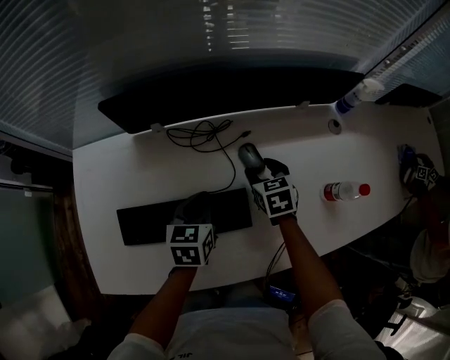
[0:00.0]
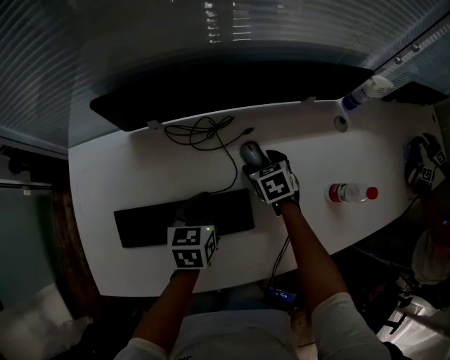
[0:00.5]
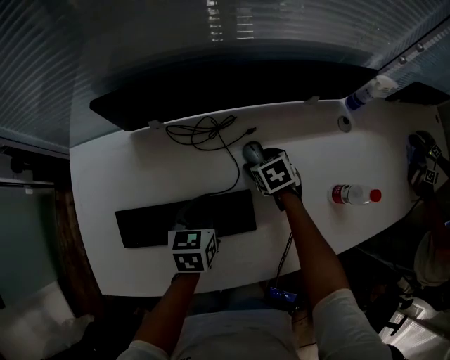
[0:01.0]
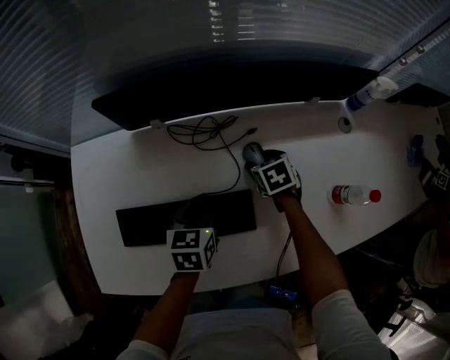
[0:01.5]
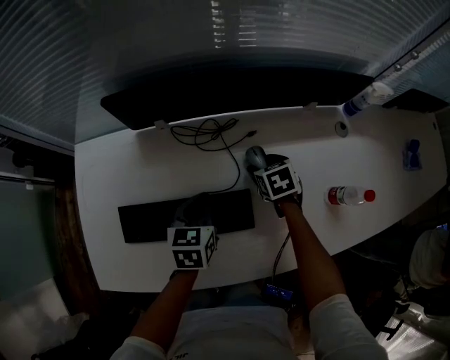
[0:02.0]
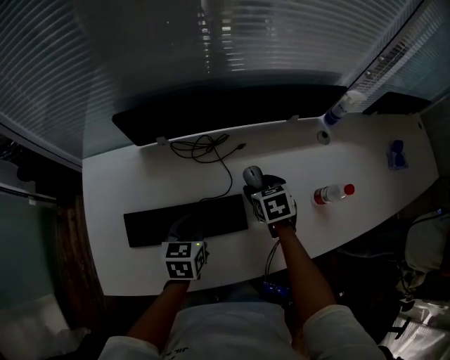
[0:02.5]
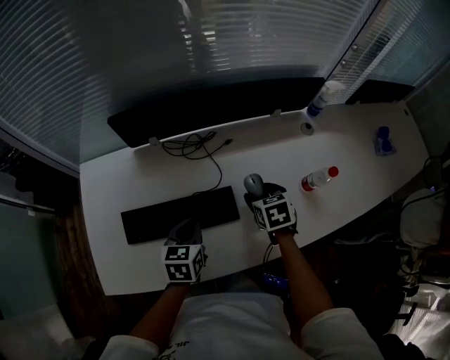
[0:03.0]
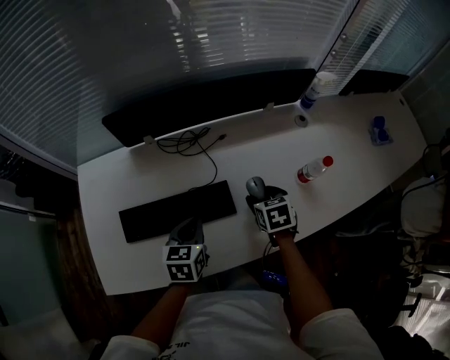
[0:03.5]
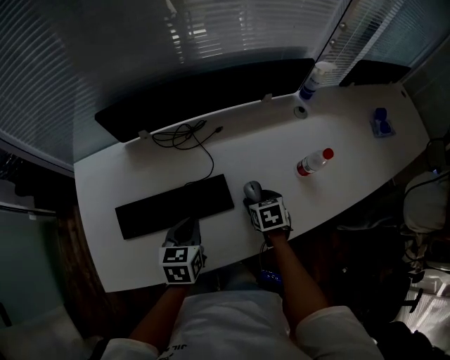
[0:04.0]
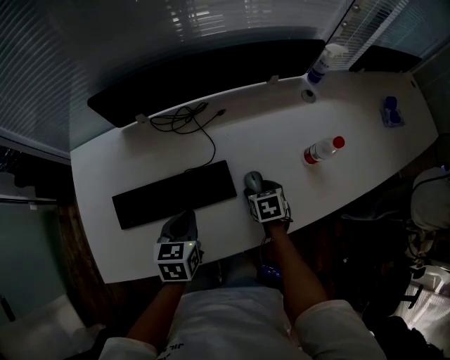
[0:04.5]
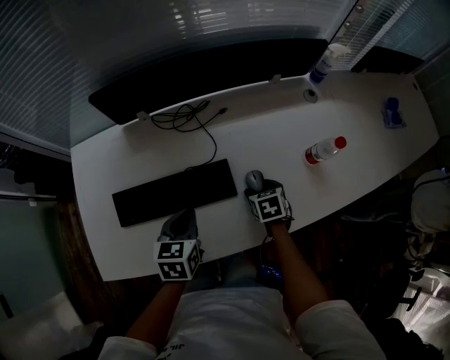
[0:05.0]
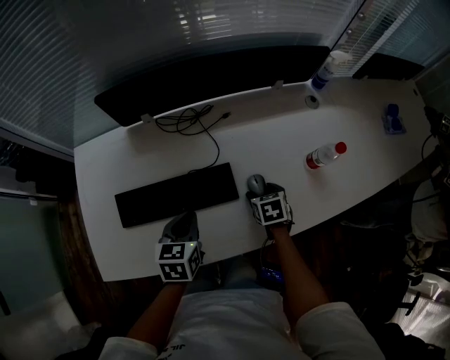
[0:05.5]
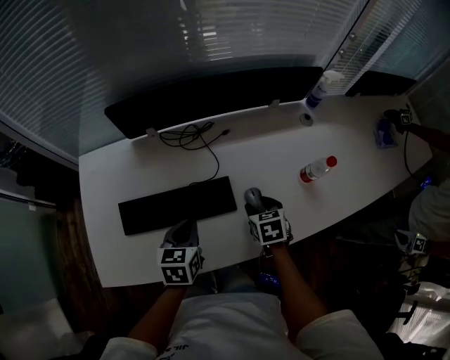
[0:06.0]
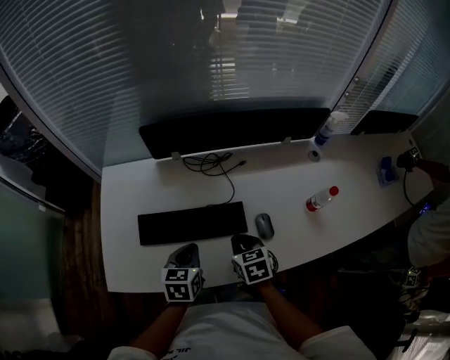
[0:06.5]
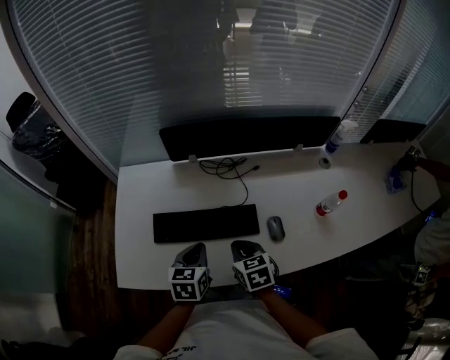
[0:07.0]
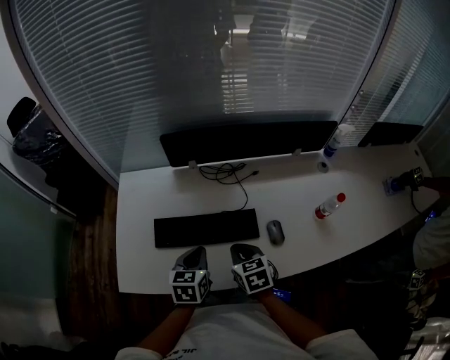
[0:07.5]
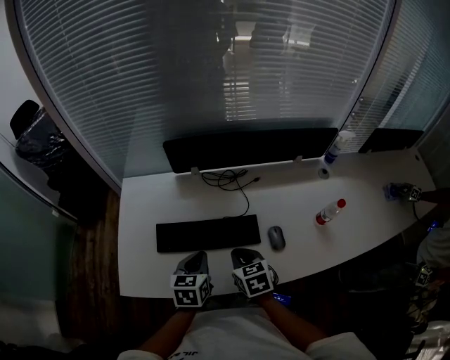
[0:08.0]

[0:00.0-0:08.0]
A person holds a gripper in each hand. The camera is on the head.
0:02.0 to 0:04.0: The two grippers go some 15 cm backward.
0:04.0 to 0:06.0: There are only small adjustments of the grippers.
0:06.0 to 0:08.0: The right gripper shifts roughly 20 cm to the left and upward, and closes up, while the left gripper travels to the left and upward by approximately 10 cm.

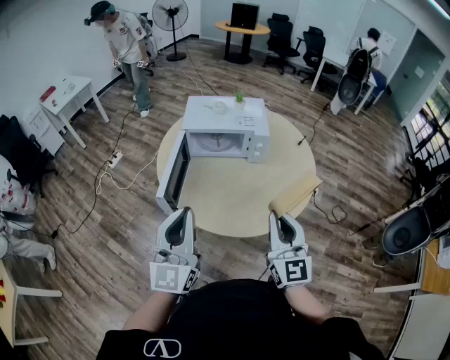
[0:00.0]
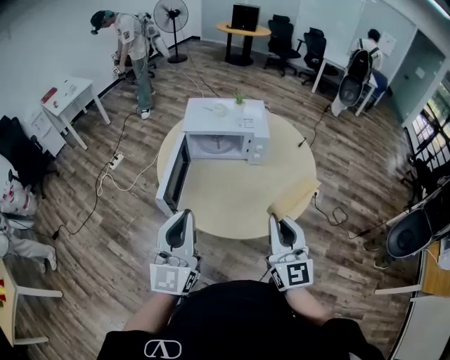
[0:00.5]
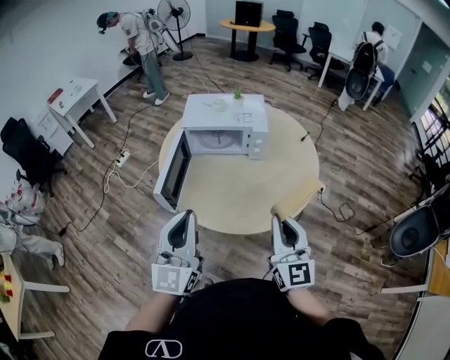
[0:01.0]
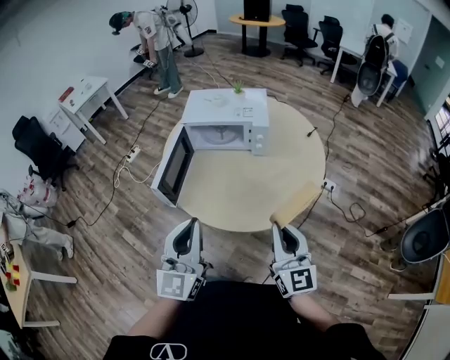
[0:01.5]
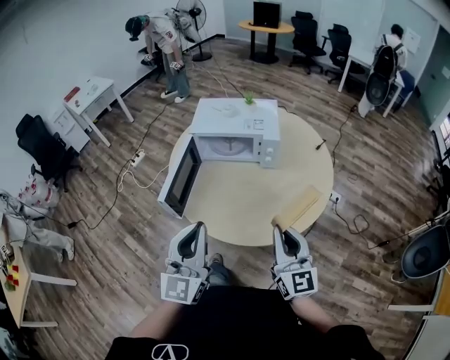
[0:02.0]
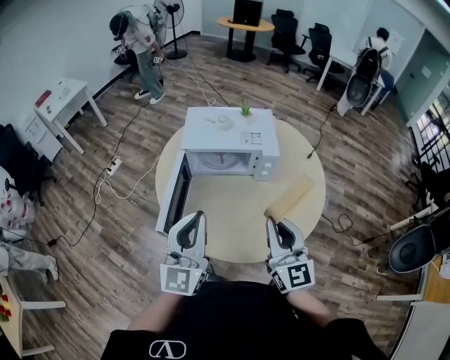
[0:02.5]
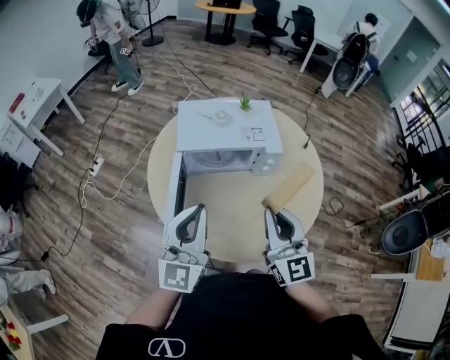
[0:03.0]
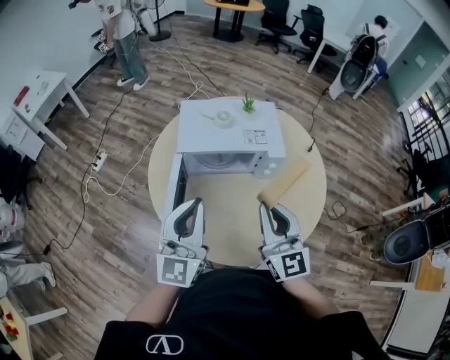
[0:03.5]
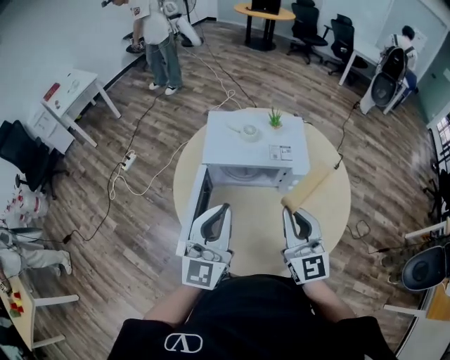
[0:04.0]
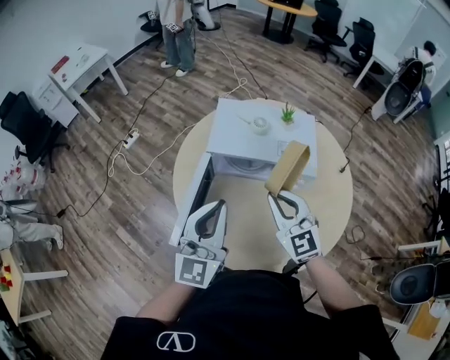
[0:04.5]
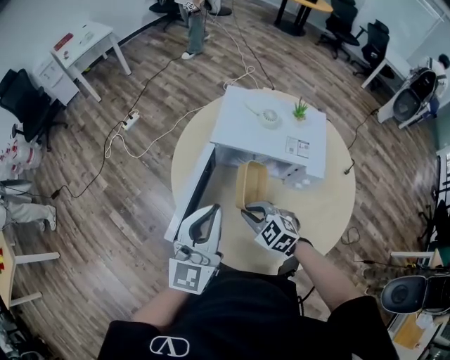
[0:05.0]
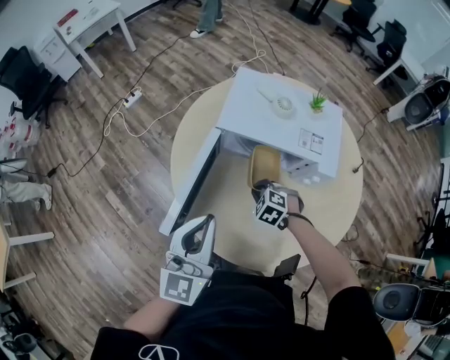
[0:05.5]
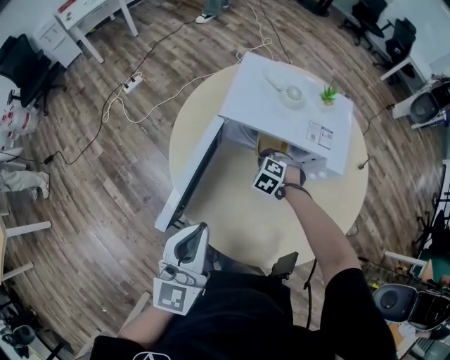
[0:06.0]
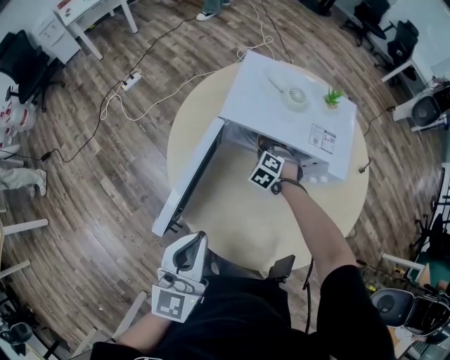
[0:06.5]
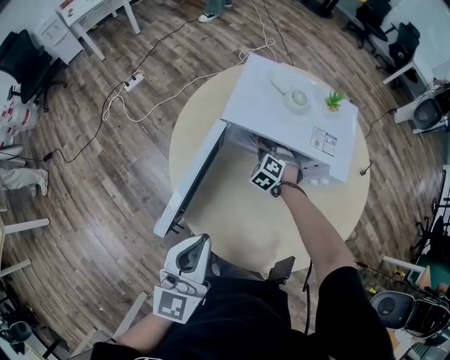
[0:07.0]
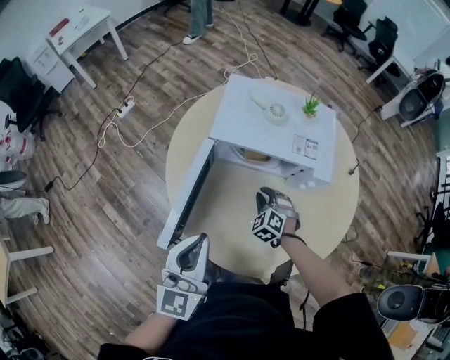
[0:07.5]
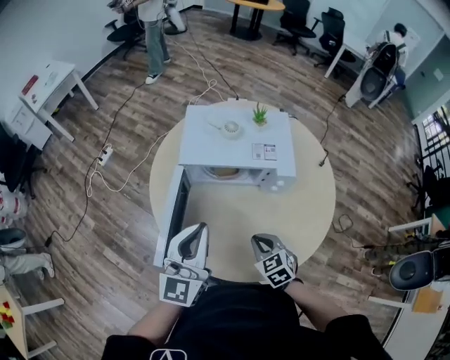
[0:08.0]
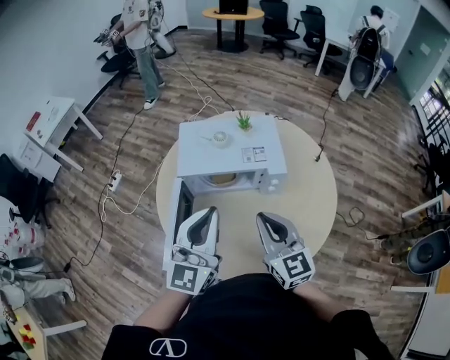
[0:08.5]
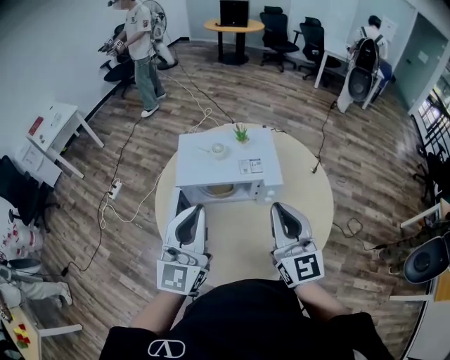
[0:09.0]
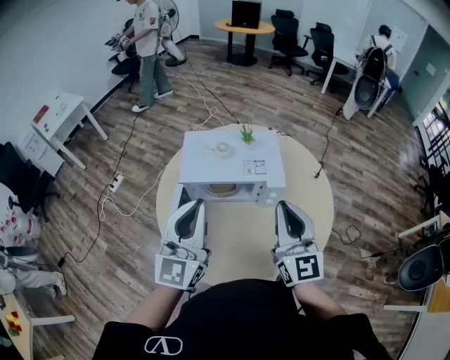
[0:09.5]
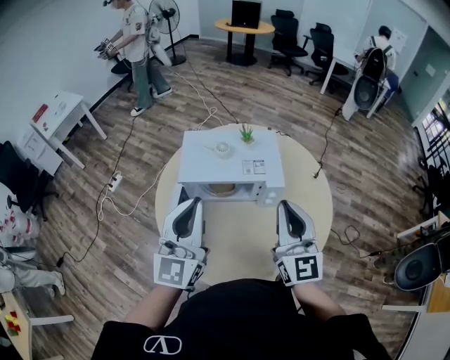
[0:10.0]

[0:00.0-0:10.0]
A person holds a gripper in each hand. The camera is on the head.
0:00.0 to 0:02.0: The two grippers go some 5 cm to the right.
0:02.0 to 0:04.0: The left gripper heads forward, covering approximately 25 cm, while the right gripper travels forward and to the left by some 30 cm.
0:04.0 to 0:06.0: The left gripper goes some 15 cm downward, and rotates about 20 degrees, while the right gripper moves downward, some 40 cm, and tilts its fingers roughly 70 degrees downward.
0:06.0 to 0:08.0: The right gripper travels backward and upward by about 25 cm, and twists about 40 degrees clockwise, seen from behind. Meanwhile the left gripper goes roughly 10 cm upward, forward and to the right.
0:08.0 to 0:10.0: The right gripper is displaced upward by about 30 cm, and points its fingers some 60 degrees further upward; the left gripper travels upward by approximately 10 cm.

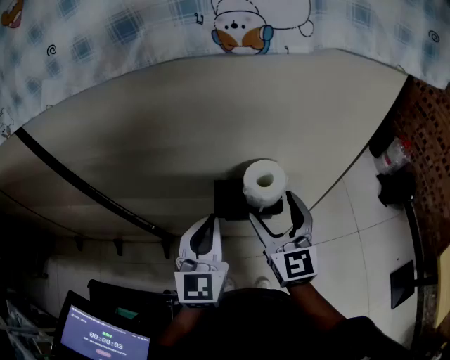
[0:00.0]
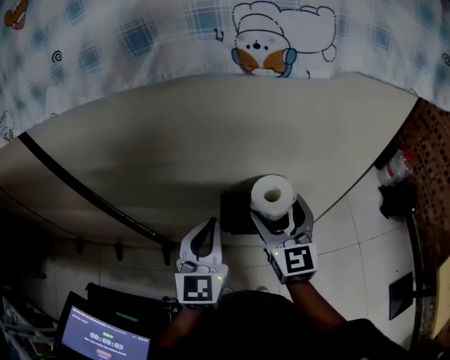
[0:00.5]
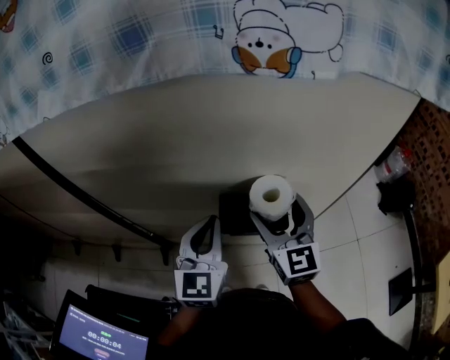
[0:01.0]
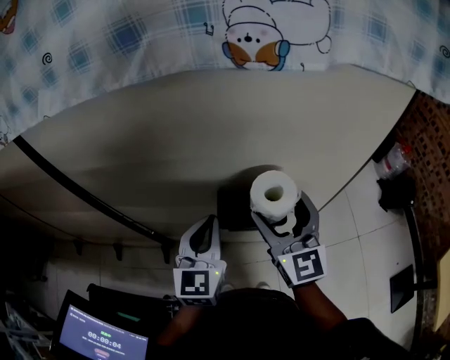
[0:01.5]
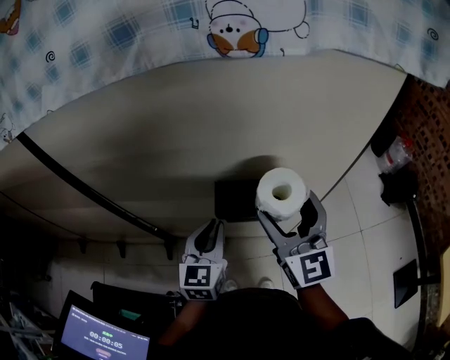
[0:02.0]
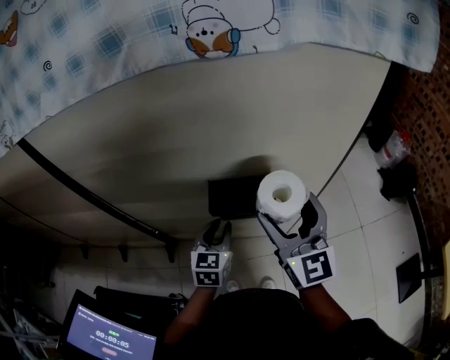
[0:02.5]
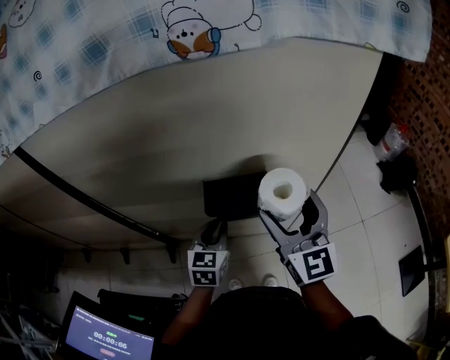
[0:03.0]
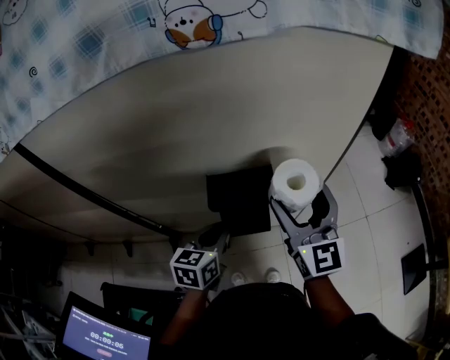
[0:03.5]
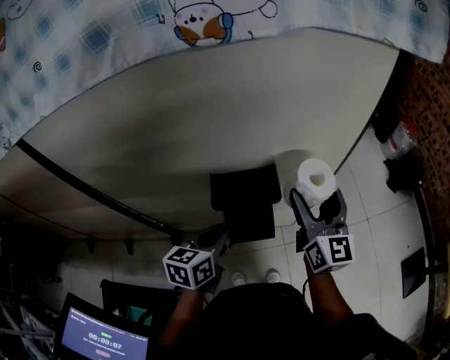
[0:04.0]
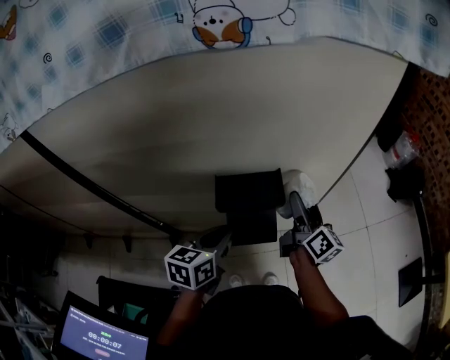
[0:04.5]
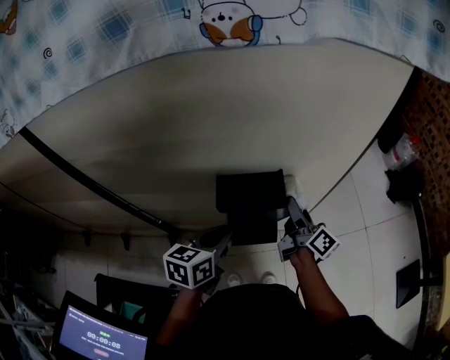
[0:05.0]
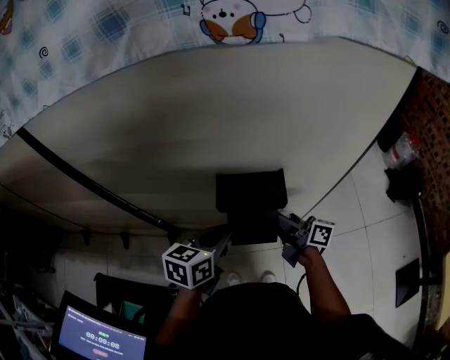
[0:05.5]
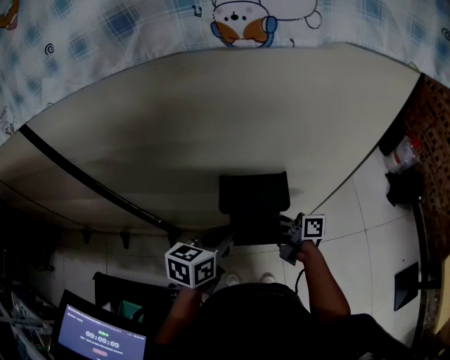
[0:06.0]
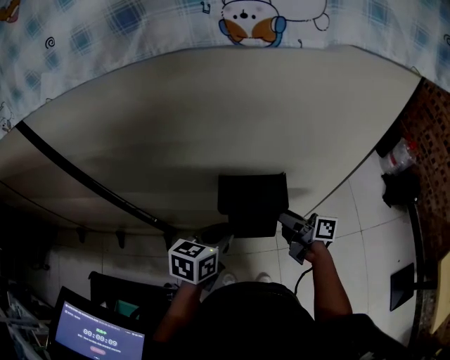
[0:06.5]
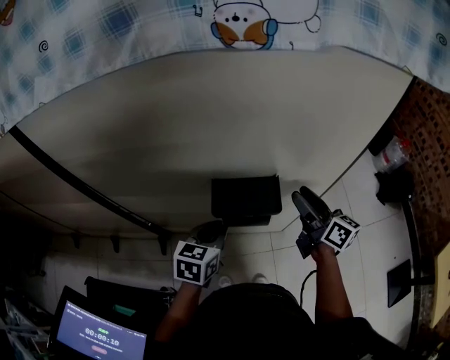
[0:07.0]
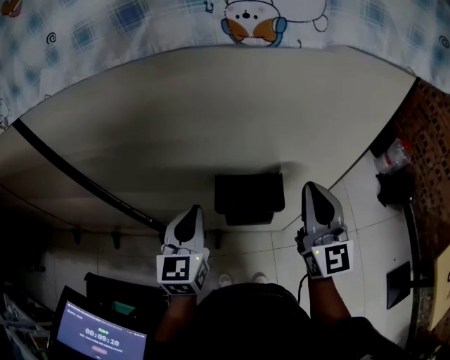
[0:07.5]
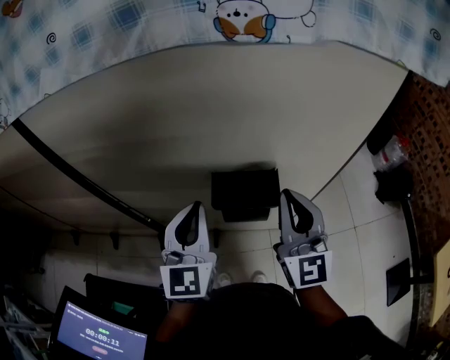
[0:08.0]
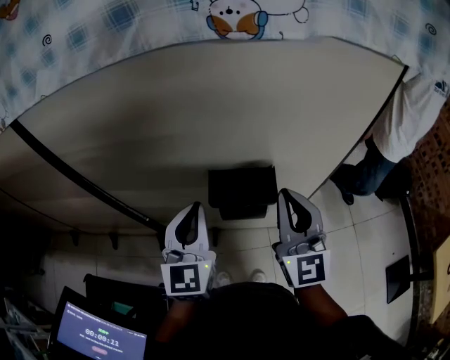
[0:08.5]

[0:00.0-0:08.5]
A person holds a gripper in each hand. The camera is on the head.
0:00.0 to 0:02.0: The left gripper goes some 10 cm downward. The right gripper travels upward by roughly 5 cm.
0:02.0 to 0:04.0: The left gripper shifts by some 5 cm, and changes its angle by approximately 30 degrees; the right gripper moves to the right and downward, roughly 10 cm.
0:04.0 to 0:06.5: The right gripper is displaced downward by about 15 cm, and rotates approximately 70 degrees.
0:06.5 to 0:08.5: The right gripper shifts roughly 20 cm upward, rolls counterclockwise, seen from behind, by some 80 degrees, and closes, while the left gripper is displaced upward by some 15 cm, and rotates some 50 degrees.
